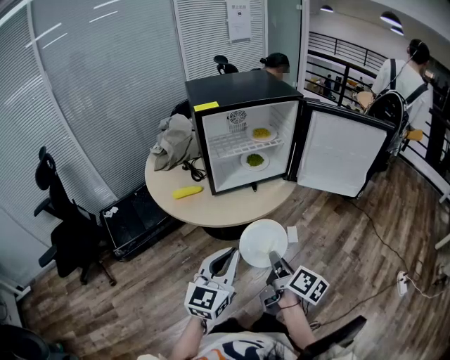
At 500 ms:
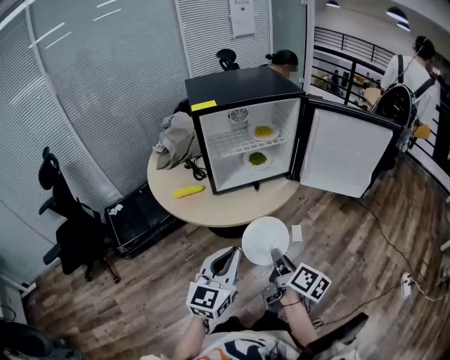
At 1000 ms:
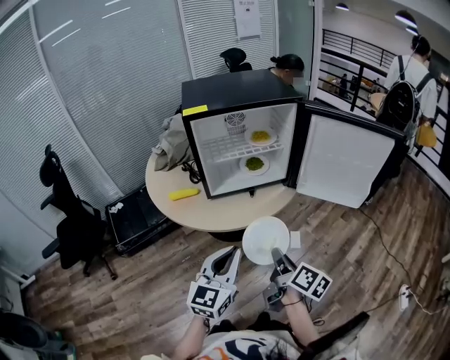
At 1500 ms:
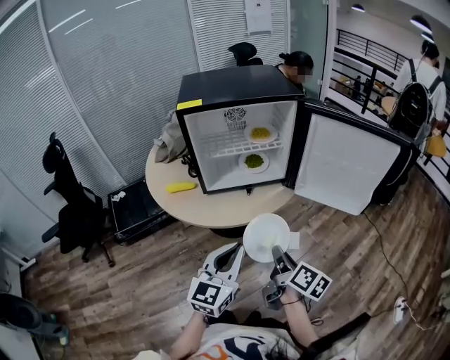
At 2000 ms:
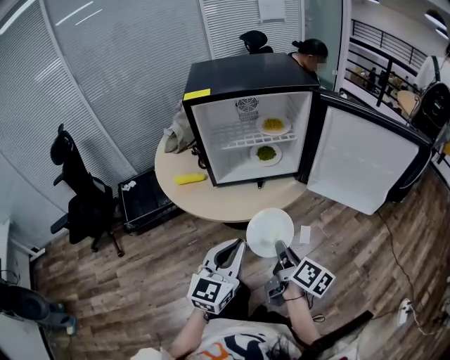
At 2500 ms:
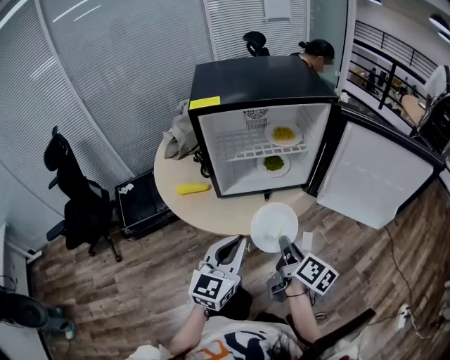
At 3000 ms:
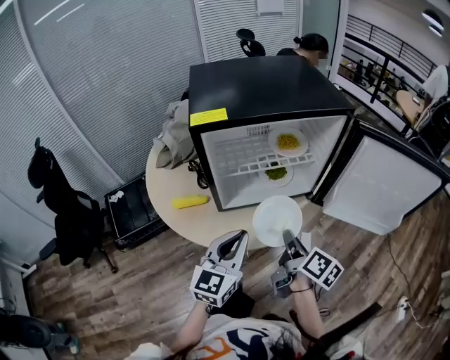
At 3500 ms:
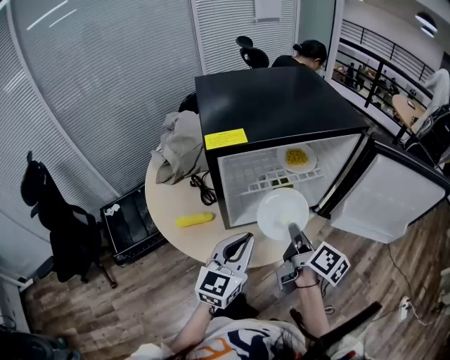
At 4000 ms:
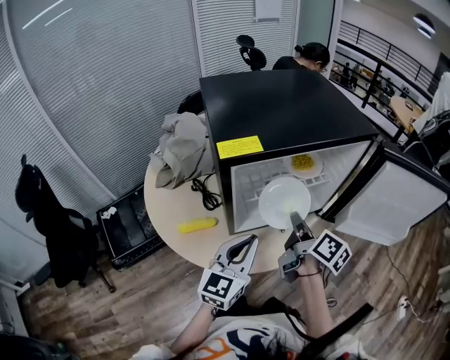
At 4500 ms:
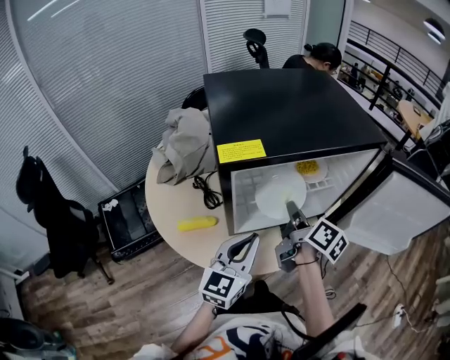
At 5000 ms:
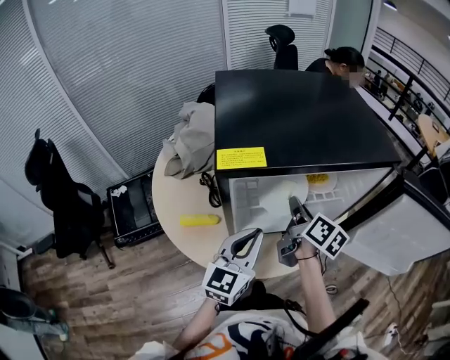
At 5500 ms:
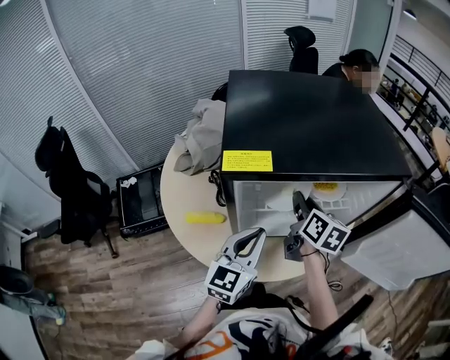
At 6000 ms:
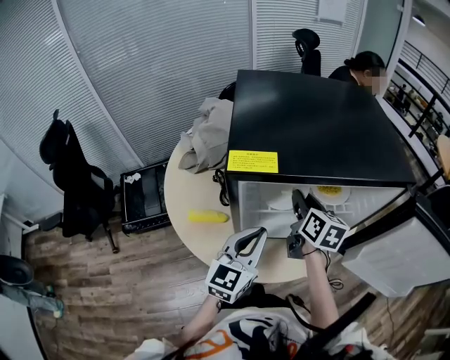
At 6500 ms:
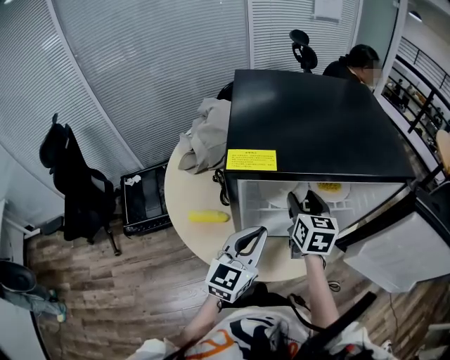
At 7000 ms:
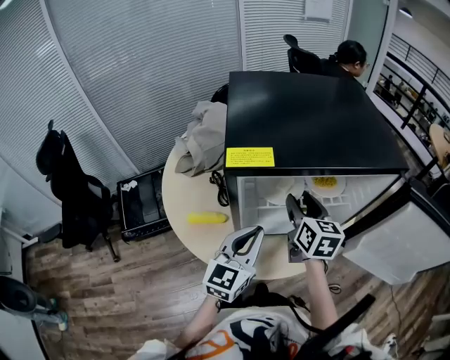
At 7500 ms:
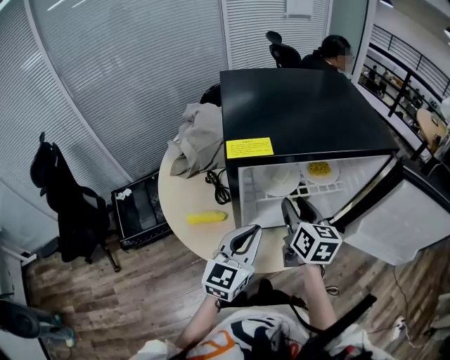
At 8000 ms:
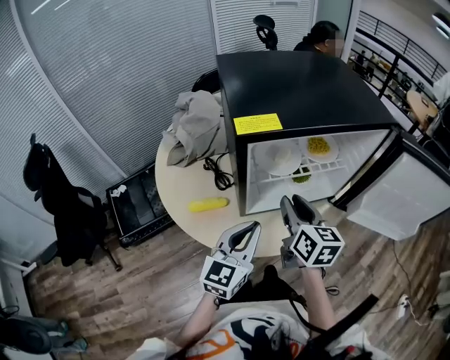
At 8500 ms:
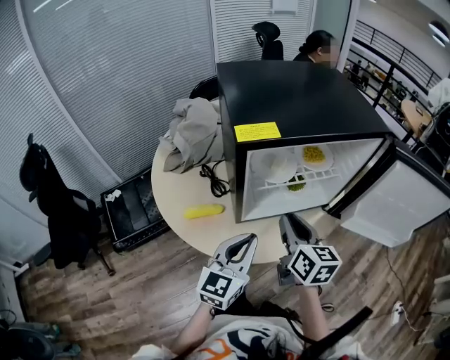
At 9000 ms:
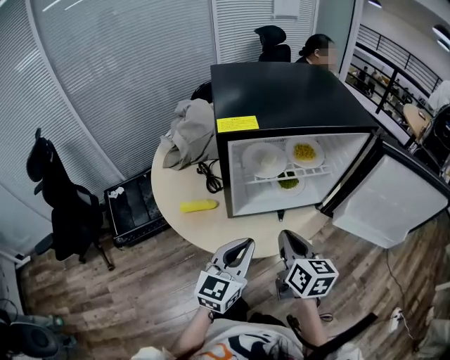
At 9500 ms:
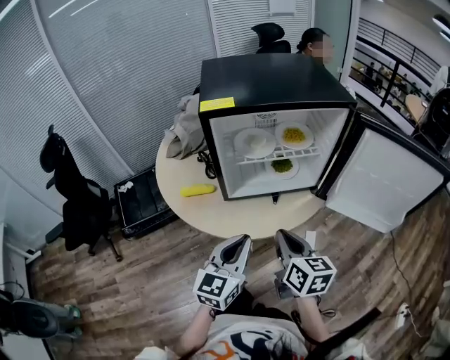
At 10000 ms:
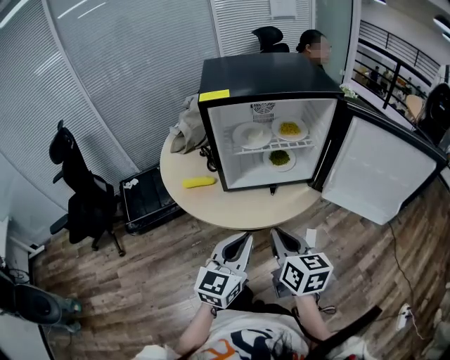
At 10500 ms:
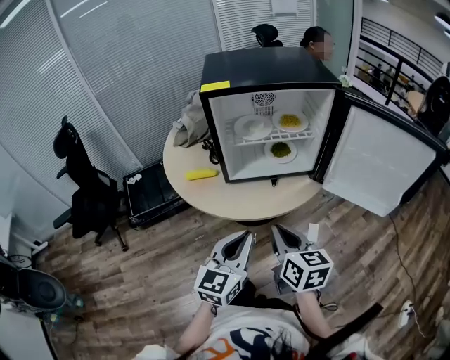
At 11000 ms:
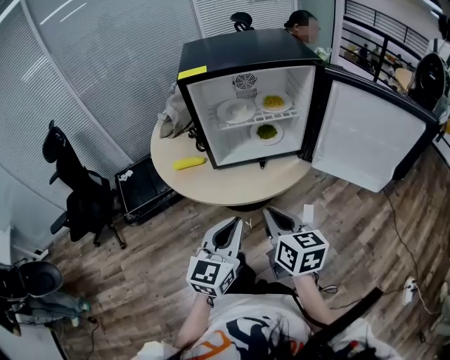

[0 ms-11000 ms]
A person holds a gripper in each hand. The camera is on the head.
0 ms to 2000 ms: The left gripper heads to the right and forward, covering some 10 cm, while the right gripper shifts approximately 15 cm forward and to the right.
2000 ms to 3500 ms: Both grippers travel together forward and to the left, roughly 25 cm.
3500 ms to 5500 ms: The left gripper goes roughly 10 cm forward. The right gripper shifts approximately 15 cm forward, and changes its angle by about 30 degrees.
5500 ms to 7500 ms: The right gripper goes some 5 cm backward, and opens.
7500 ms to 9000 ms: The left gripper shifts about 10 cm backward, while the right gripper goes some 15 cm backward, and closes up.
9000 ms to 11000 ms: Both grippers move backward, about 15 cm.

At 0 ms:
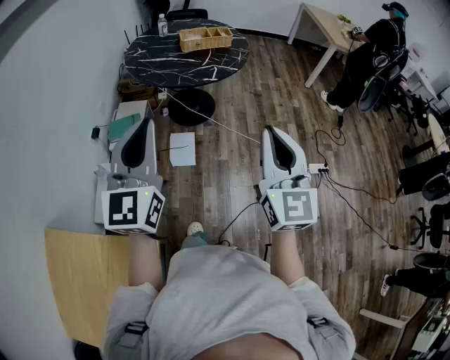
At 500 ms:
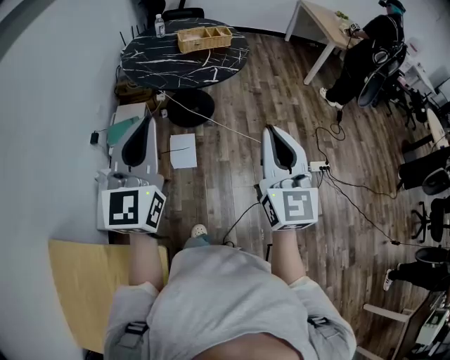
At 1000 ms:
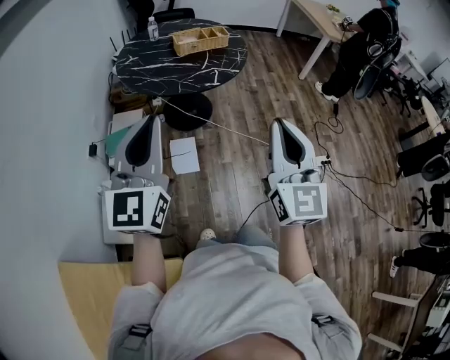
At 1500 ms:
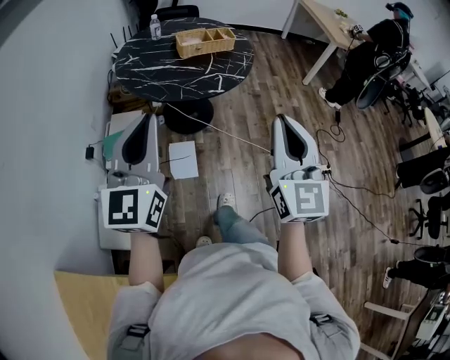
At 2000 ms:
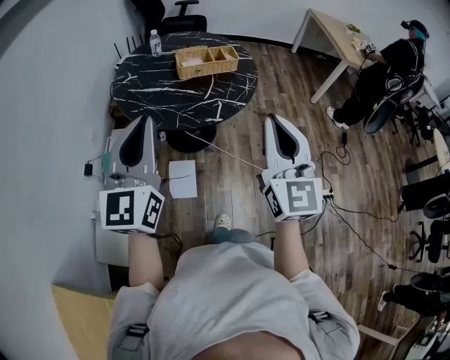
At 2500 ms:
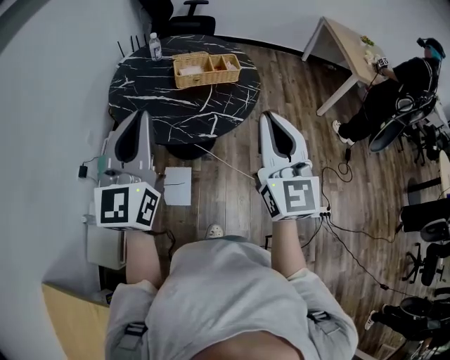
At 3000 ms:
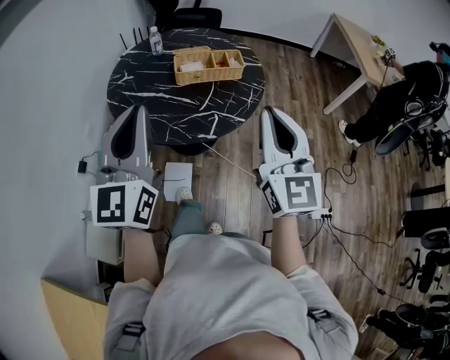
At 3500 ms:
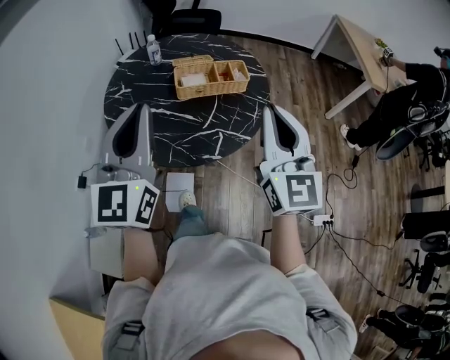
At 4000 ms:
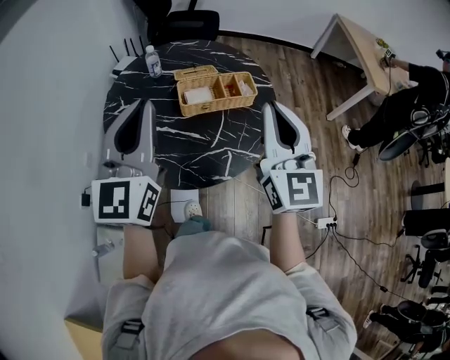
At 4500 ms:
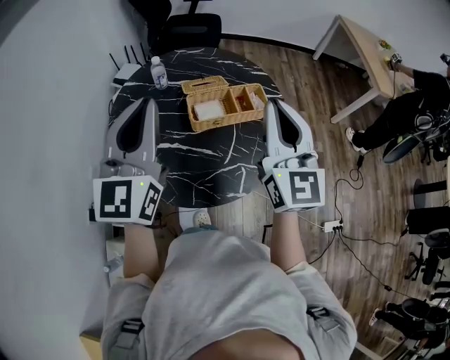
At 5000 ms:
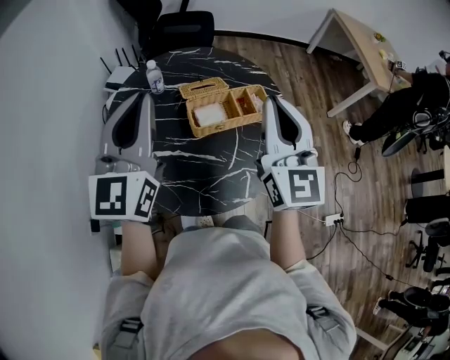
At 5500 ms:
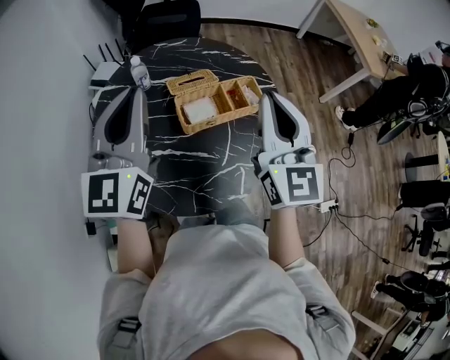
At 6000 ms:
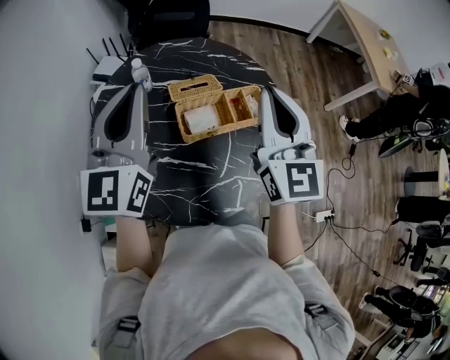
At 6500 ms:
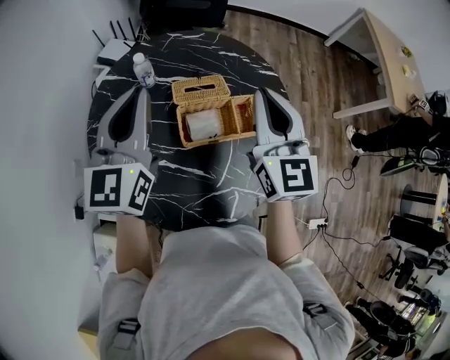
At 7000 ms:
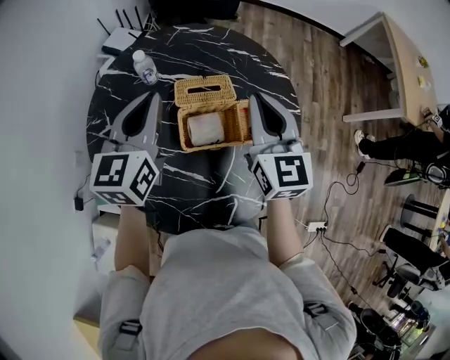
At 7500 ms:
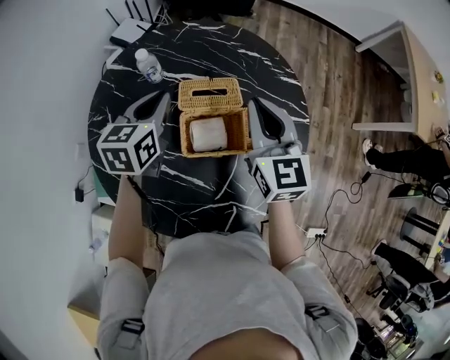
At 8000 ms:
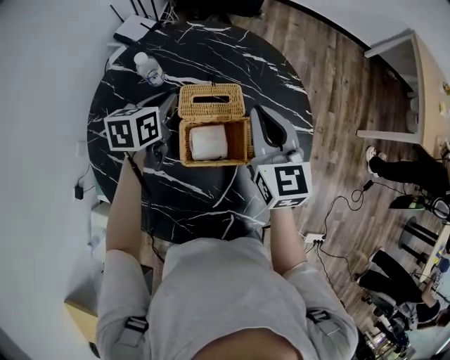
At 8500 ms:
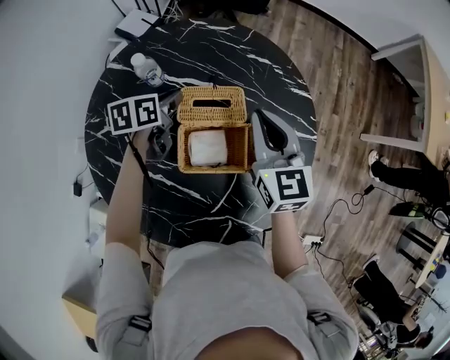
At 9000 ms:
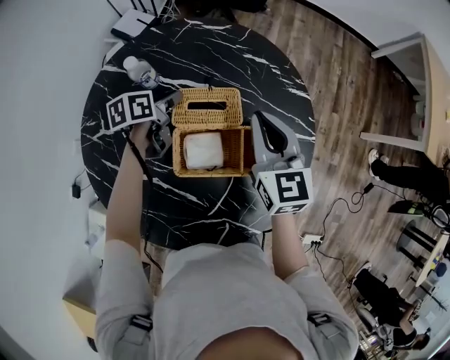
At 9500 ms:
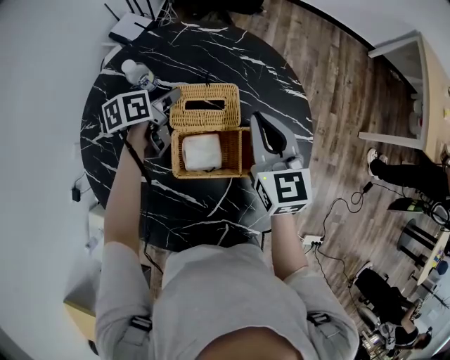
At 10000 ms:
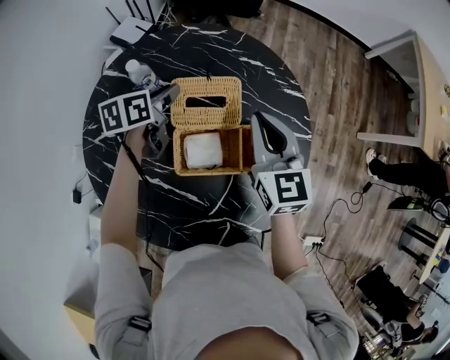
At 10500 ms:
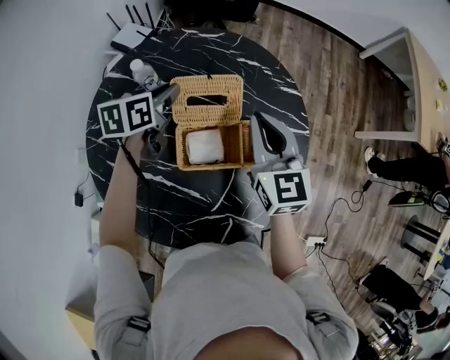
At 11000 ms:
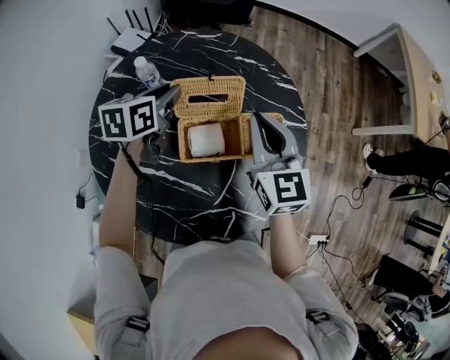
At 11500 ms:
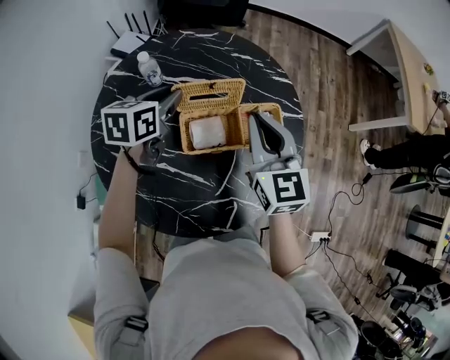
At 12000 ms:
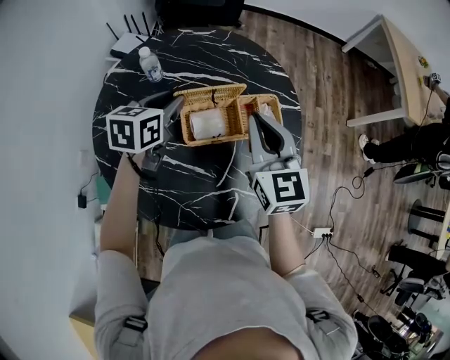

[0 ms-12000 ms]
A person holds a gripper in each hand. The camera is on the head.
0 ms to 2000 ms: The two grippers go about 25 cm forward.
2000 ms to 4000 ms: Both grippers move forward, some 30 cm.
4000 ms to 6000 ms: Both grippers travel together forward, roughly 20 cm.
6000 ms to 8000 ms: Both grippers travel together downward and forward, roughly 30 cm. The right gripper changes its angle by some 30 degrees. Meanwhile the left gripper angles its fingers downward, by roughly 50 degrees.
8000 ms to 10000 ms: The left gripper reaches approximately 10 cm downward, then returns.
10000 ms to 12000 ms: Both grippers move backward and upward, about 15 cm. The left gripper turns by about 30 degrees.

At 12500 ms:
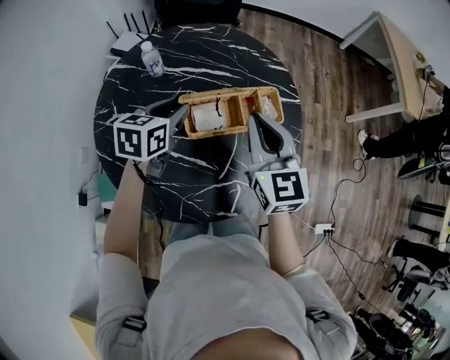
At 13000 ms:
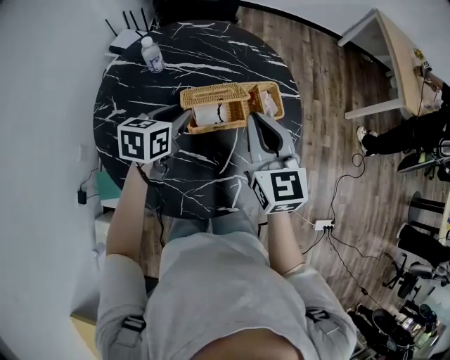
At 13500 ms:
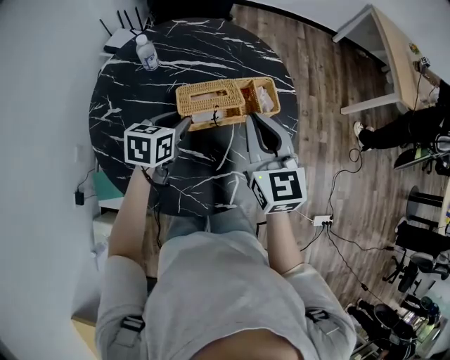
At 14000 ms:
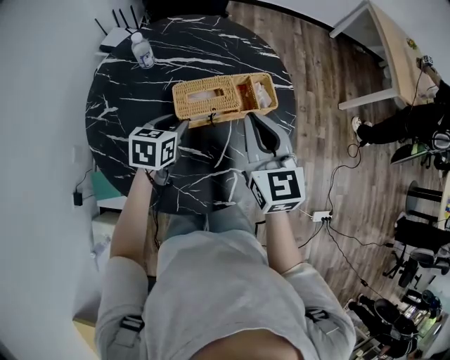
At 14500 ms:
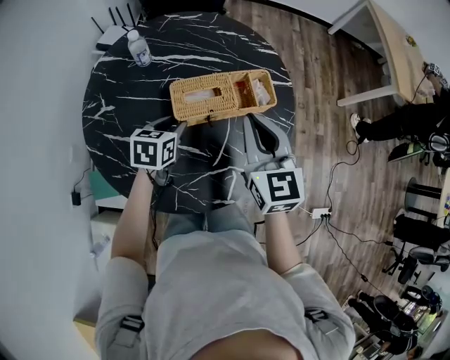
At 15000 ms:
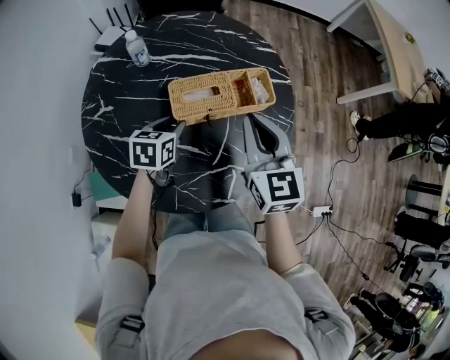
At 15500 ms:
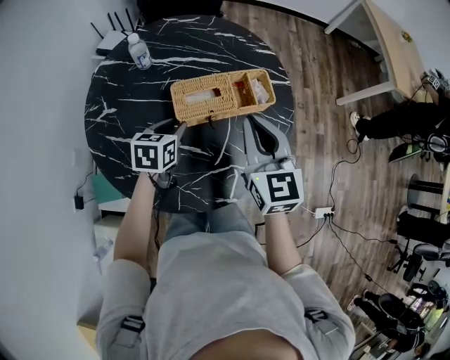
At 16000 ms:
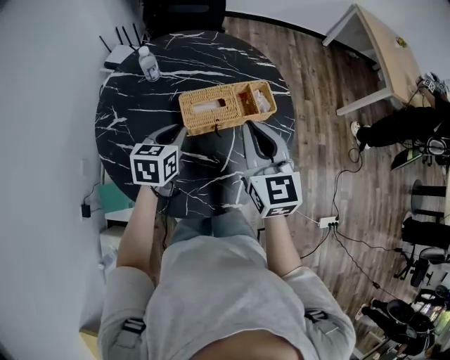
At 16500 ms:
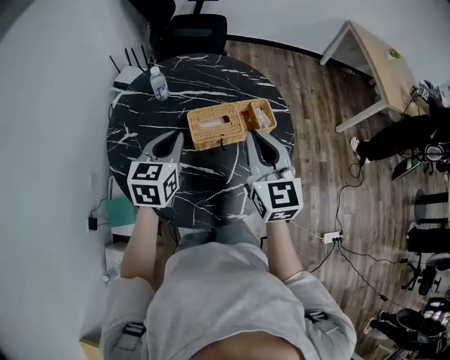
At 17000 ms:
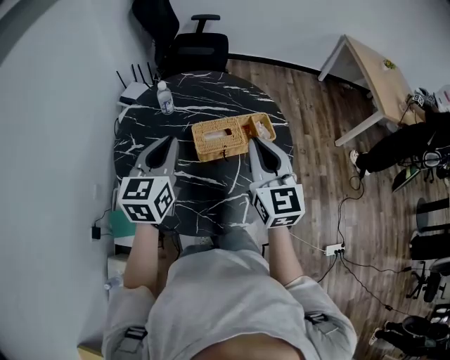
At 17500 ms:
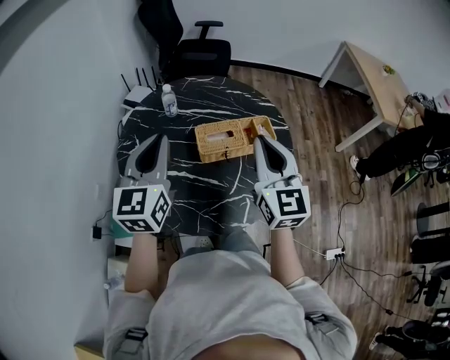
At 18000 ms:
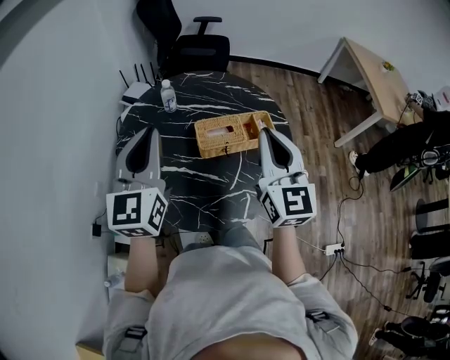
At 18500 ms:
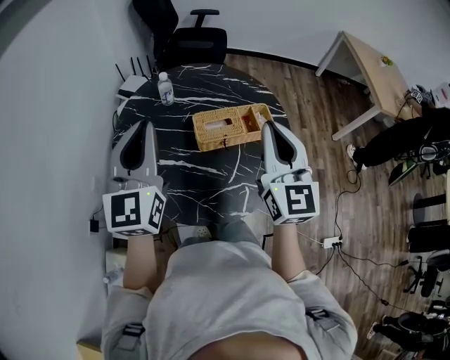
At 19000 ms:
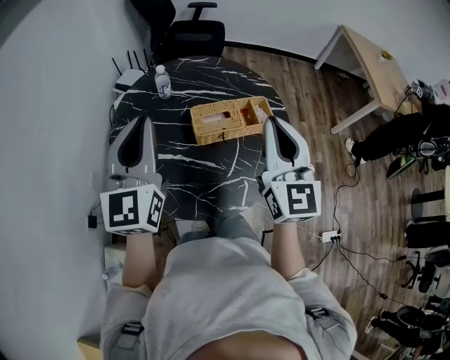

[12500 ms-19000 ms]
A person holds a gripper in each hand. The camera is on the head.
12500 ms to 14500 ms: The left gripper moves downward and backward, roughly 10 cm.
14500 ms to 17000 ms: The right gripper goes approximately 10 cm upward, while the left gripper travels upward by approximately 25 cm, tilts its fingers some 30 degrees upward, and closes.
17000 ms to 19000 ms: The two grippers go roughly 10 cm upward. The left gripper swivels roughly 20 degrees.
